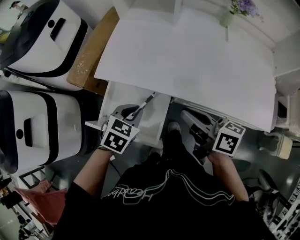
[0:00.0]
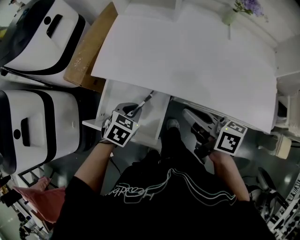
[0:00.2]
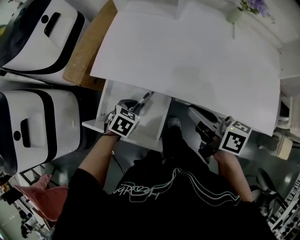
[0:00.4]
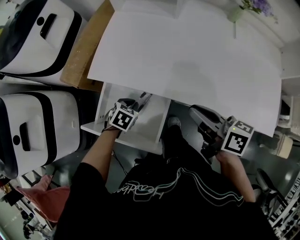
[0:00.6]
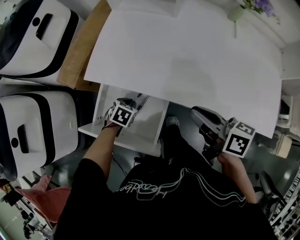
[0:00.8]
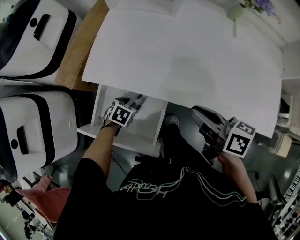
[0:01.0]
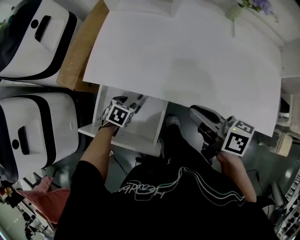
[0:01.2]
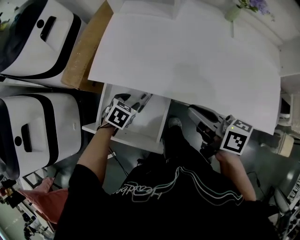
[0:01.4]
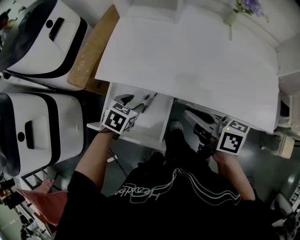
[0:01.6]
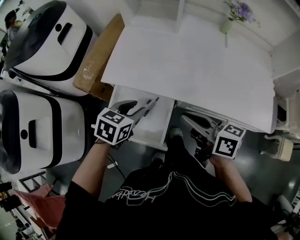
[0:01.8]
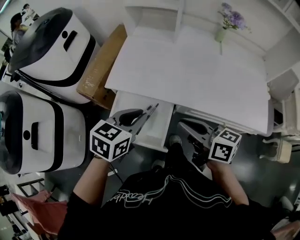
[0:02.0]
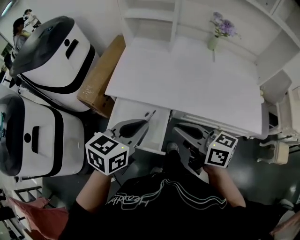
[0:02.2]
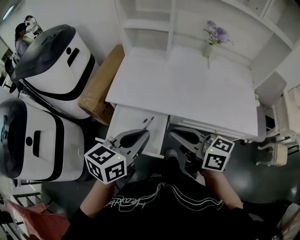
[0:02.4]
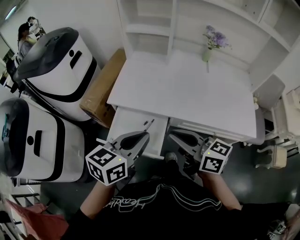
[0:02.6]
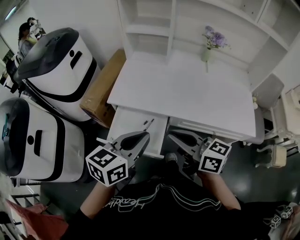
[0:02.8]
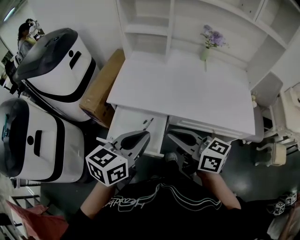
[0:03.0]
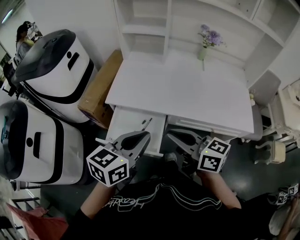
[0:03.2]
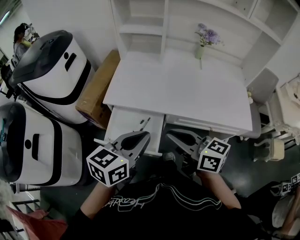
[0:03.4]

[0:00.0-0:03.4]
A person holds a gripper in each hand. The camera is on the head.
0:00.0 to 0:01.6: The left gripper moves some 20 cm downward and comes back, and opens its fingers.
0:01.6 to 0:03.4: The left gripper is displaced upward and backward by roughly 35 cm, tilts its fingers roughly 40 degrees upward, and closes, while the right gripper goes some 20 cm backward, upward and to the left, and swivels roughly 20 degrees.

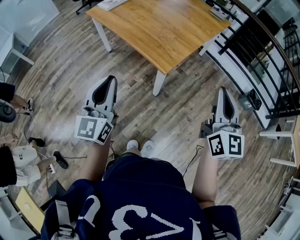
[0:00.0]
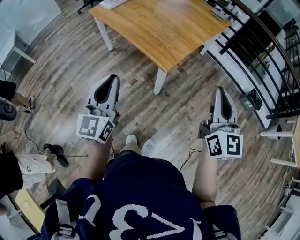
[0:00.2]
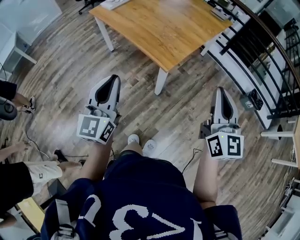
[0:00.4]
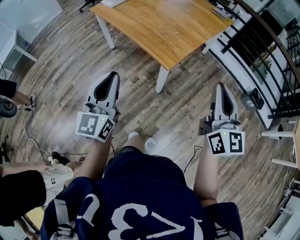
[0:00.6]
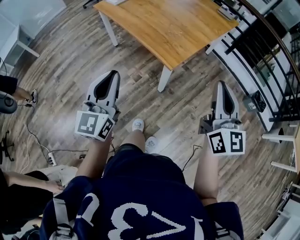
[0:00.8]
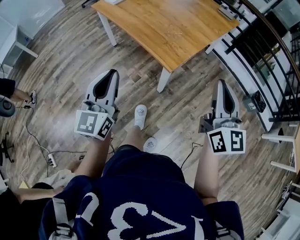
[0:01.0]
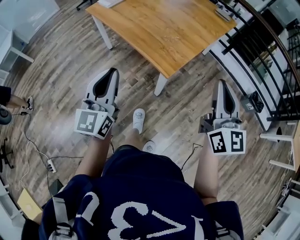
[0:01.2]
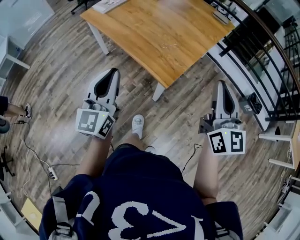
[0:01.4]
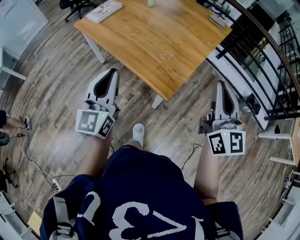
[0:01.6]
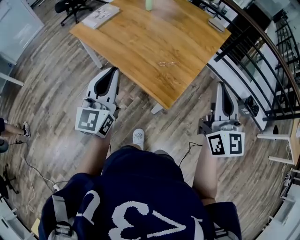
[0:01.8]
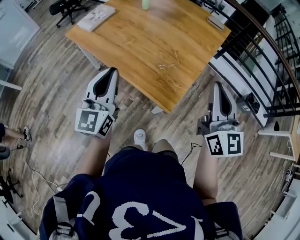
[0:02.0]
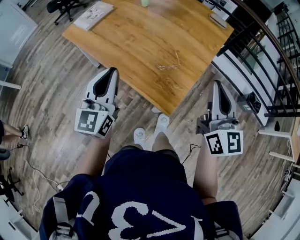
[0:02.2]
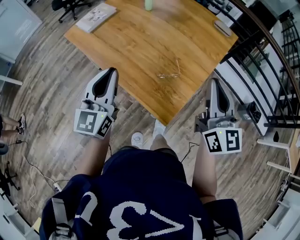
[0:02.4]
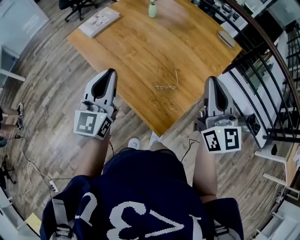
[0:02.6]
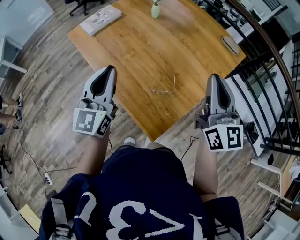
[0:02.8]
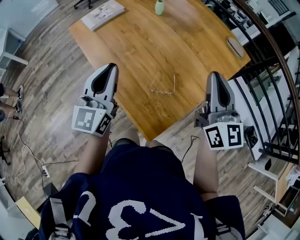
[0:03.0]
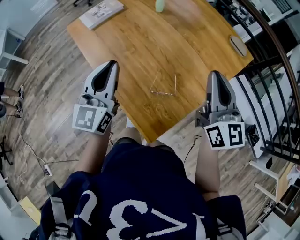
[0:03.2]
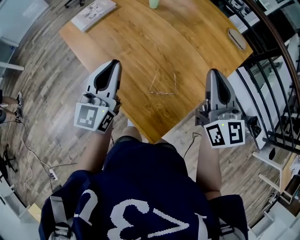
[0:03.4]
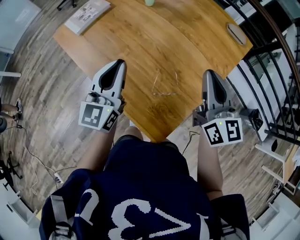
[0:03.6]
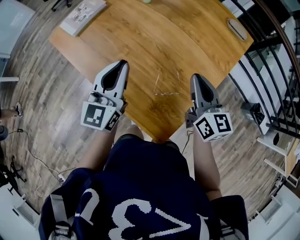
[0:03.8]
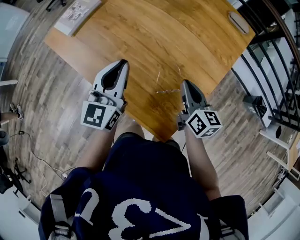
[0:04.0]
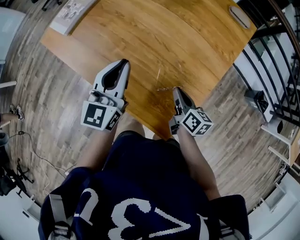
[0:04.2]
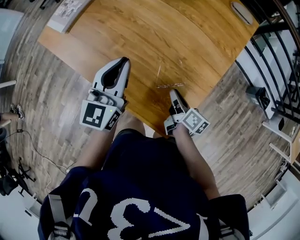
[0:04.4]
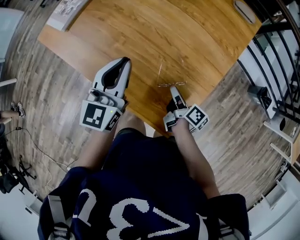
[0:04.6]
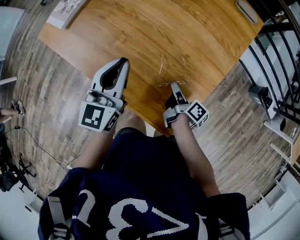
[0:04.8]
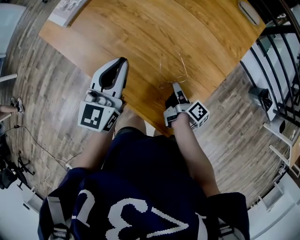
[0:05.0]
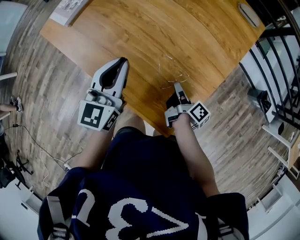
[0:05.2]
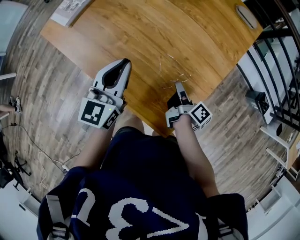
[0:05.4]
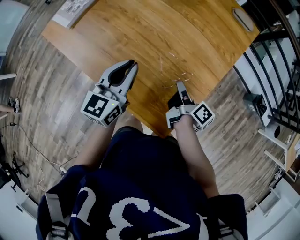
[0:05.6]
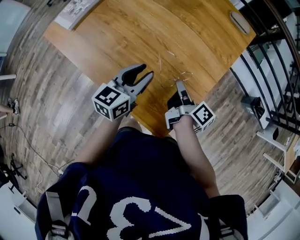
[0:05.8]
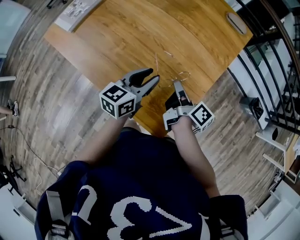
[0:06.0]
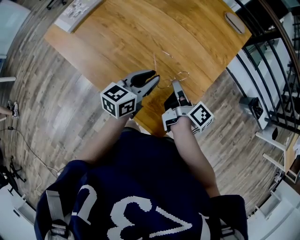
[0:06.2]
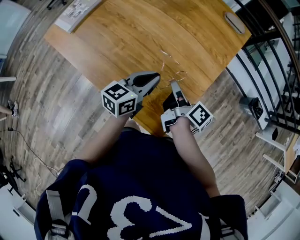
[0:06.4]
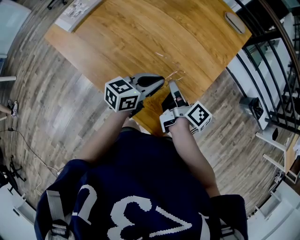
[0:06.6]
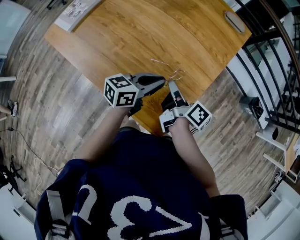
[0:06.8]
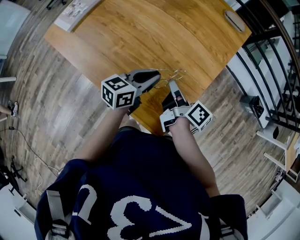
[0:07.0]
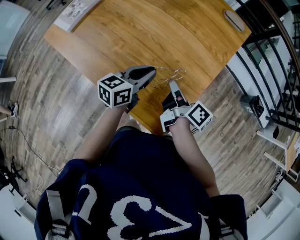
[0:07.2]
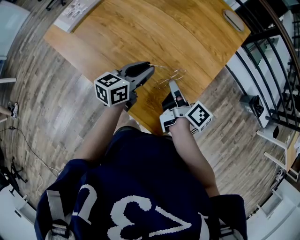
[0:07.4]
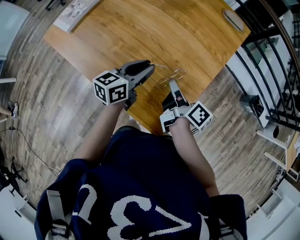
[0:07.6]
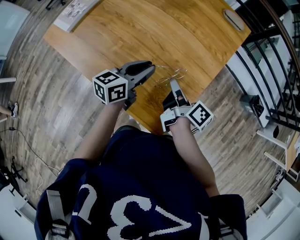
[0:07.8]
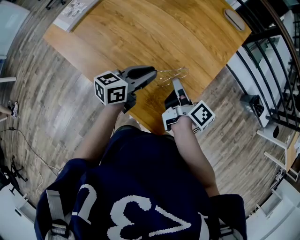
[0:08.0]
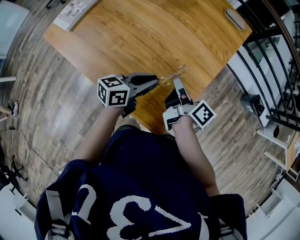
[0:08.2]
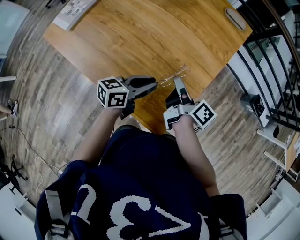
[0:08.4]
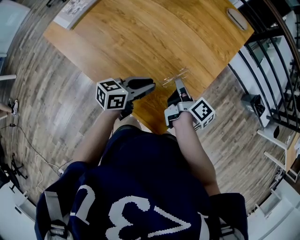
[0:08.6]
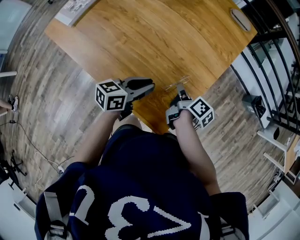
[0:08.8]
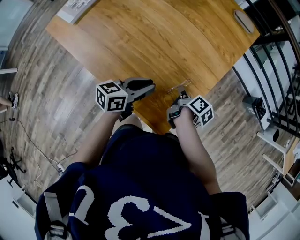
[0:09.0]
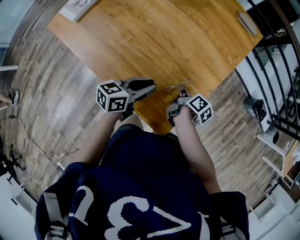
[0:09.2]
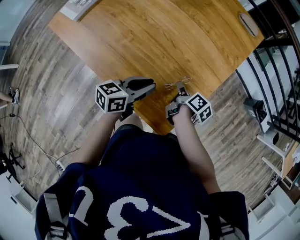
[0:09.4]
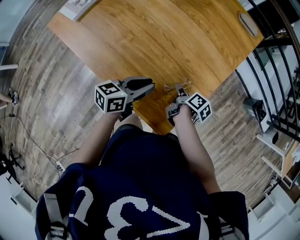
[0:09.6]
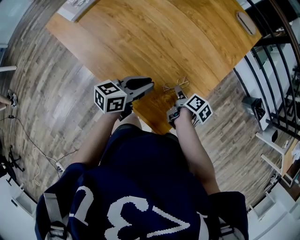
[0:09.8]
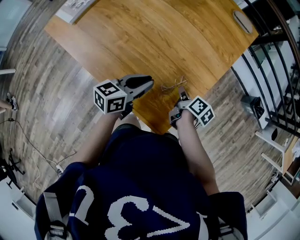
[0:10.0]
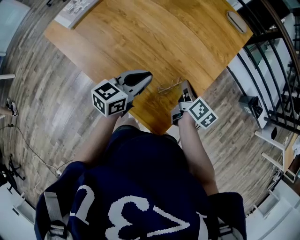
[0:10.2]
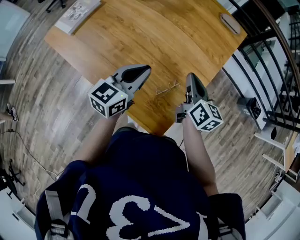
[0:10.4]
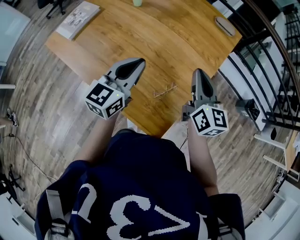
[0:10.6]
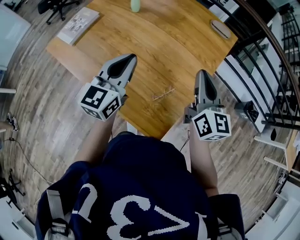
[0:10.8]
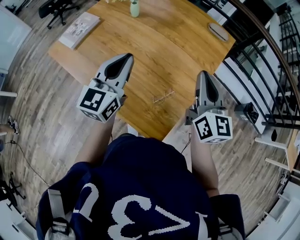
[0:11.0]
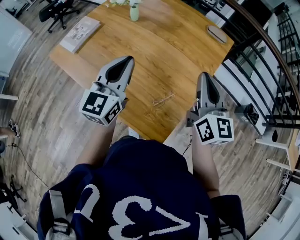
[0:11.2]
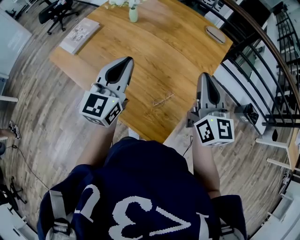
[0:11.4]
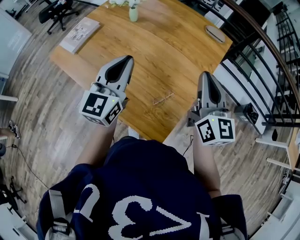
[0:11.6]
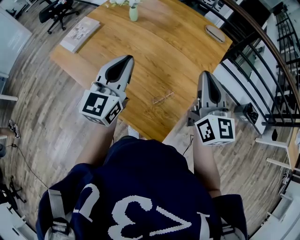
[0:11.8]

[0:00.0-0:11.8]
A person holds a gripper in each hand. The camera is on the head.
0:00.0 to 0:01.4: Both grippers move forward, approximately 10 cm.
0:01.4 to 0:03.0: Both grippers travel together forward, roughly 35 cm.
0:03.0 to 0:04.4: The right gripper heads downward, covering some 35 cm, and rotates around the line of its fingers by roughly 60 degrees, clockwise from behind; the left gripper travels forward and downward by approximately 15 cm, and swivels roughly 20 degrees.
0:04.4 to 0:06.0: The left gripper is displaced to the right and downward by some 10 cm, turns by about 30 degrees, and opens; the right gripper moves upward, some 10 cm.
0:06.0 to 0:07.4: There are only small adjustments of the grippers.
0:07.4 to 0:08.8: The left gripper goes roughly 5 cm backward; the right gripper is displaced downward by about 10 cm.
0:08.8 to 0:10.4: Both grippers travel together upward, about 10 cm. The left gripper swivels about 30 degrees, while the right gripper rotates around the line of its fingers by some 40 degrees, counterclockwise from behind, and opens and closes again.
0:10.4 to 0:11.8: Both grippers travel together upward, about 15 cm. The right gripper turns by some 30 degrees; the left gripper swivels roughly 30 degrees.

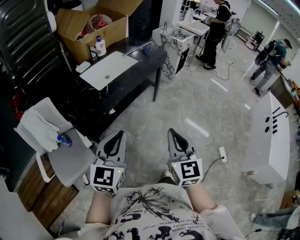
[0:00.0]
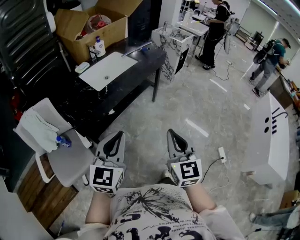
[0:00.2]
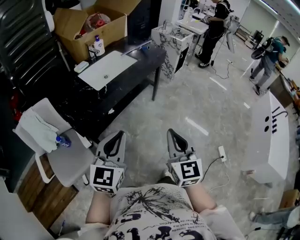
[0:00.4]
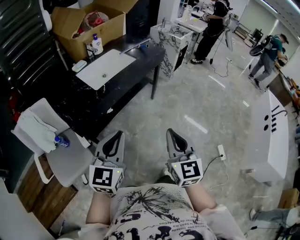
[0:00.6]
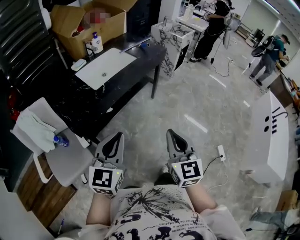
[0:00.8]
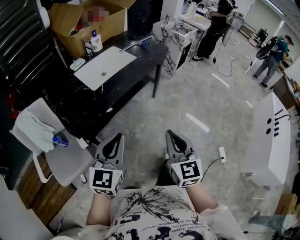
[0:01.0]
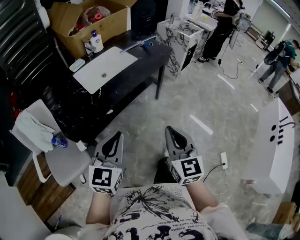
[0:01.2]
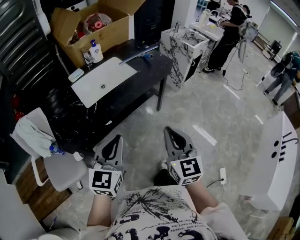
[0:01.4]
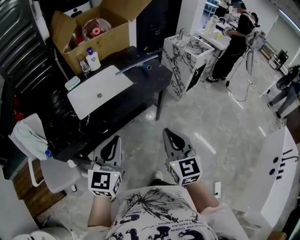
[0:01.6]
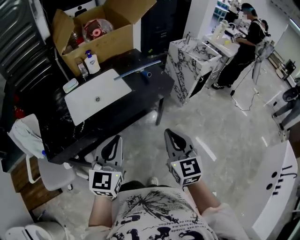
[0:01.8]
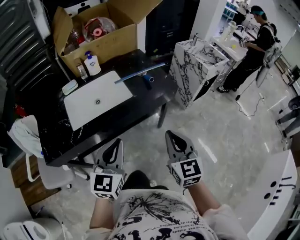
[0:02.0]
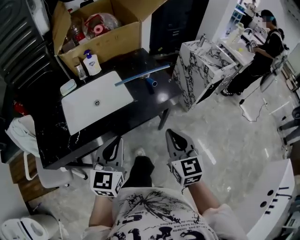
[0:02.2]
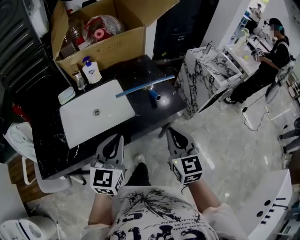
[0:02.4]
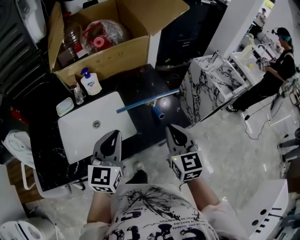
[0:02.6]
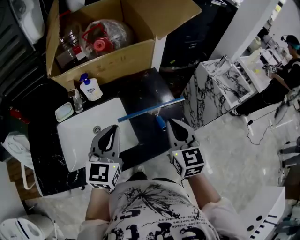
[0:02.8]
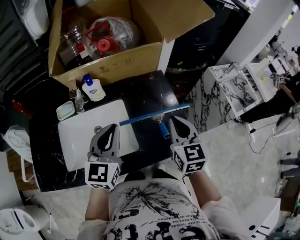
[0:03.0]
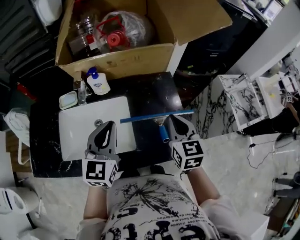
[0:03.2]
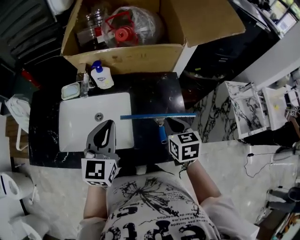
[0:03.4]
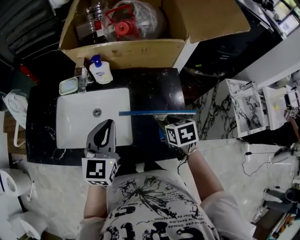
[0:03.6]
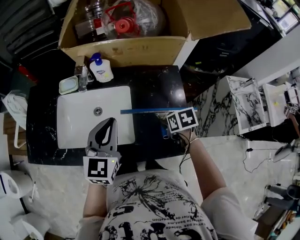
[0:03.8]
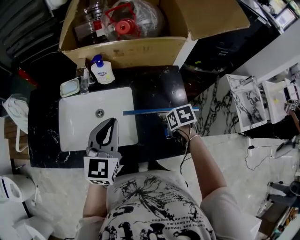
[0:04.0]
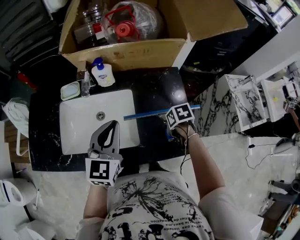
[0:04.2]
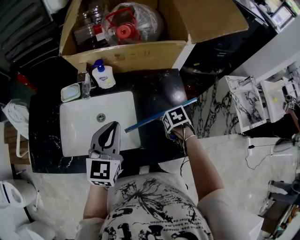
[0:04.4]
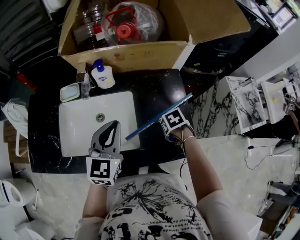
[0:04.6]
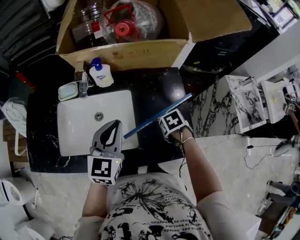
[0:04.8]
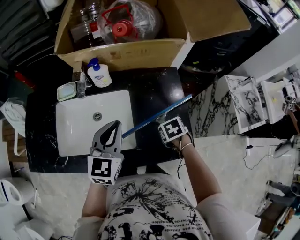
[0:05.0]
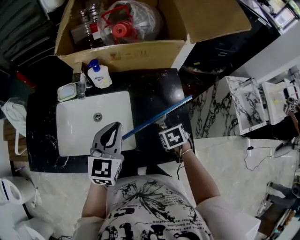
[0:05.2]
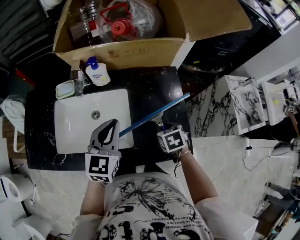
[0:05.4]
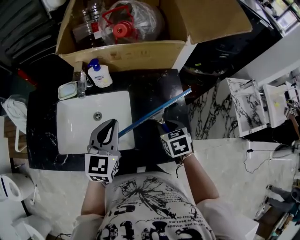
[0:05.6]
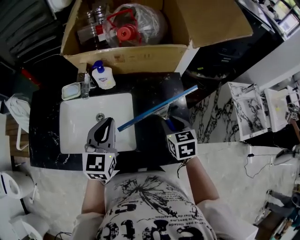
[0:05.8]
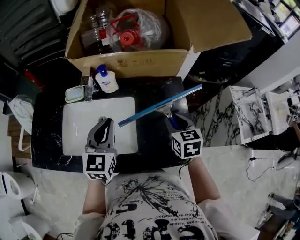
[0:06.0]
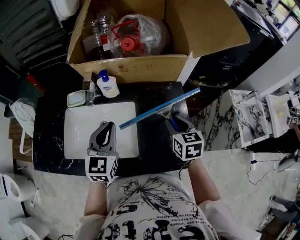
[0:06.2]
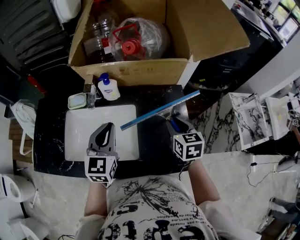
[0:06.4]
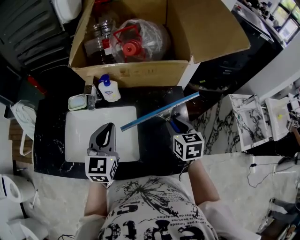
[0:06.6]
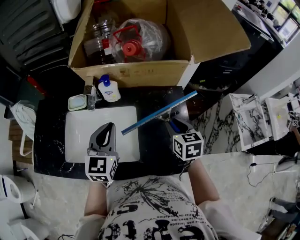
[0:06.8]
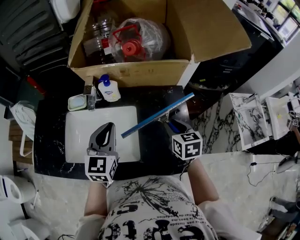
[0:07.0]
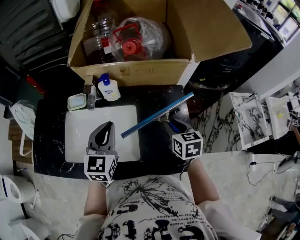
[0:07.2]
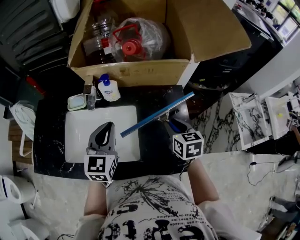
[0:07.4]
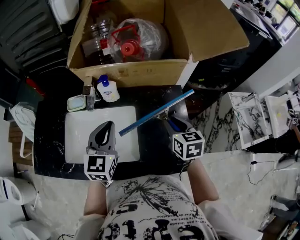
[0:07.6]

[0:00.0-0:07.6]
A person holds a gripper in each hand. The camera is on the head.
0:00.0 to 0:01.6: The right gripper goes roughly 30 cm forward. Meanwhile the left gripper heads forward and to the right, covering approximately 30 cm.
0:01.6 to 0:03.0: Both grippers are carried forward, approximately 50 cm. The right gripper swivels about 20 degrees. The left gripper swivels roughly 20 degrees.
0:03.0 to 0:04.6: The right gripper is displaced downward by some 25 cm, tips its fingers downward by approximately 70 degrees, and opens.
0:04.6 to 0:06.0: The right gripper travels upward by some 15 cm, and points its fingers roughly 50 degrees further upward.
0:06.0 to 0:07.6: The grippers make only small movements.
